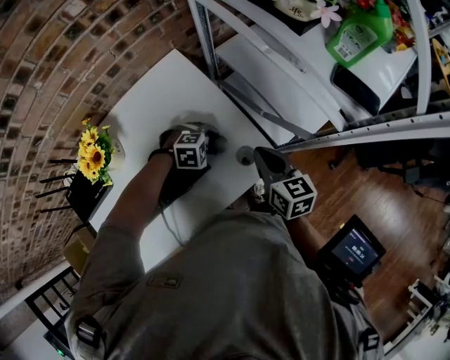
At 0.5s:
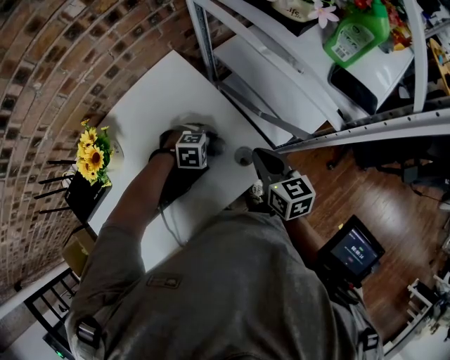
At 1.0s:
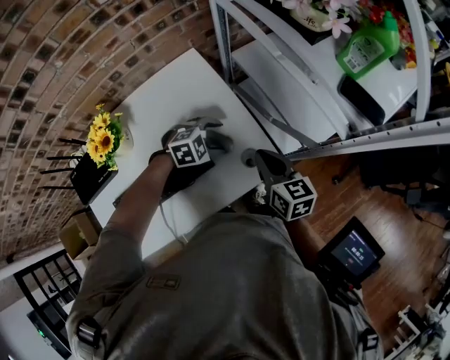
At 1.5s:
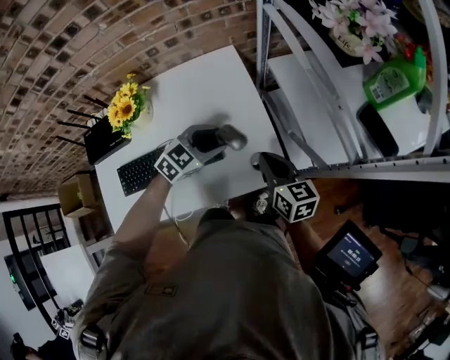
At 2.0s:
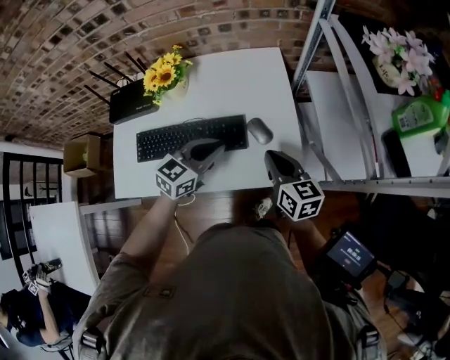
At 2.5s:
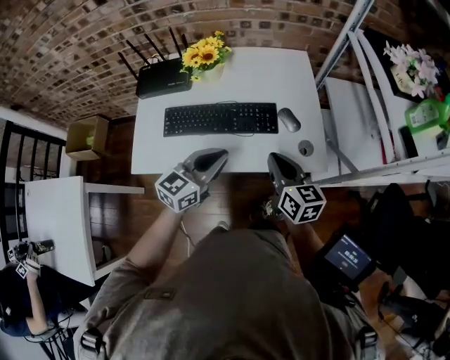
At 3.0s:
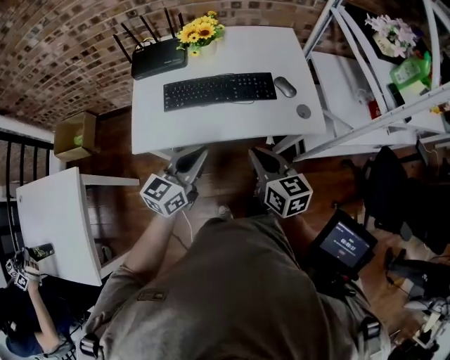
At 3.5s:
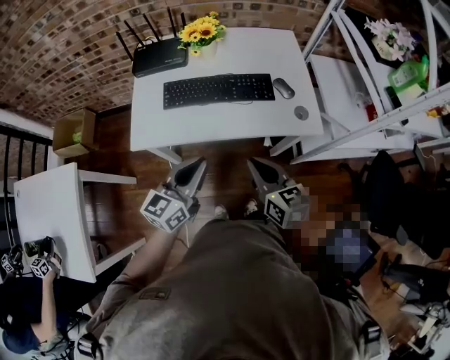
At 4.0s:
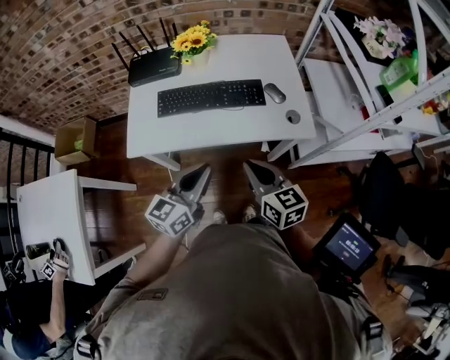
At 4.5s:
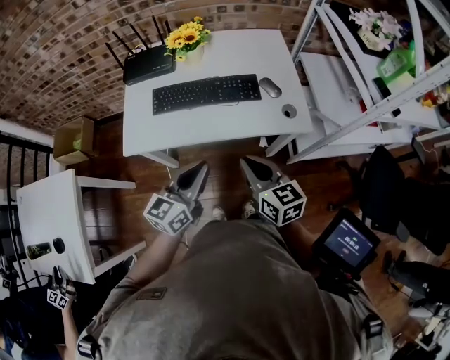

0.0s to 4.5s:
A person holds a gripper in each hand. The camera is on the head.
0.0s to 2.0s: The left gripper travels upward by about 15 cm, tilts its fingers some 50 degrees upward, and closes, while the right gripper changes place by about 10 cm, and rotates approximately 30 degrees.
2.0s to 4.5s: Both grippers move backward and to the left, about 30 cm. The left gripper changes its angle by about 30 degrees.

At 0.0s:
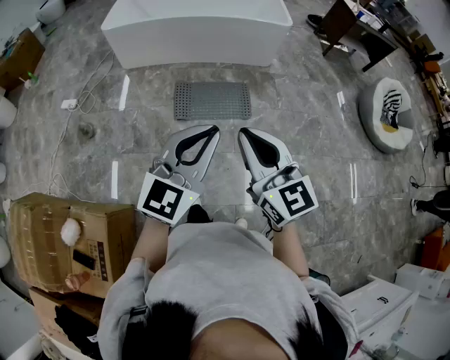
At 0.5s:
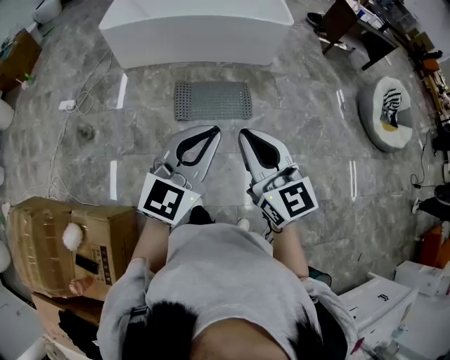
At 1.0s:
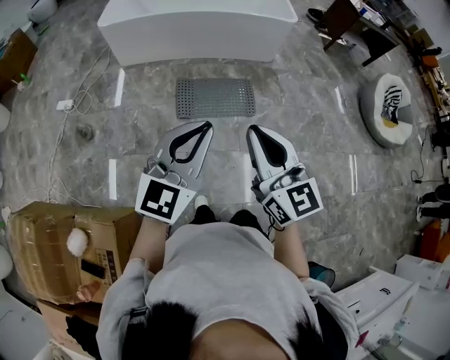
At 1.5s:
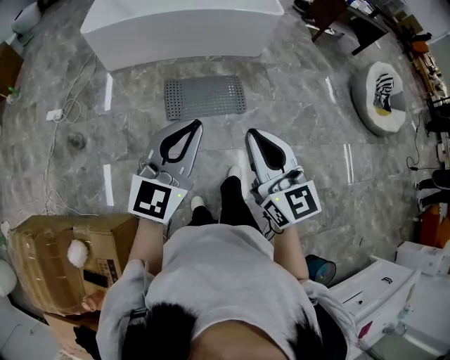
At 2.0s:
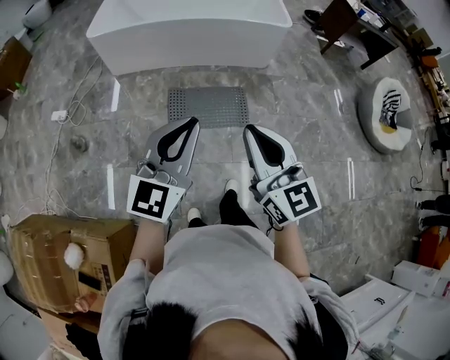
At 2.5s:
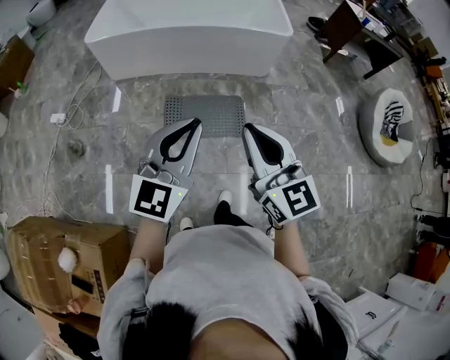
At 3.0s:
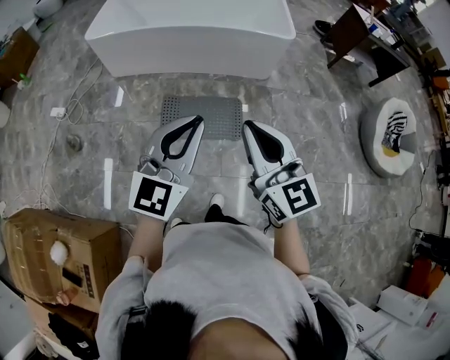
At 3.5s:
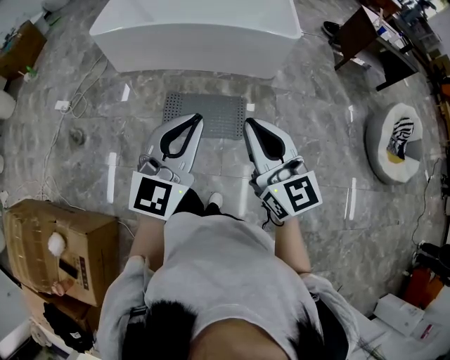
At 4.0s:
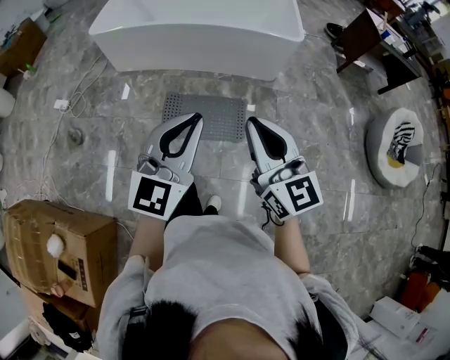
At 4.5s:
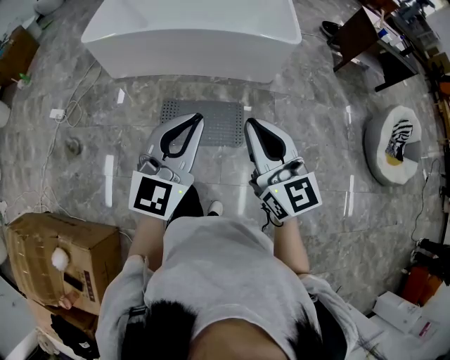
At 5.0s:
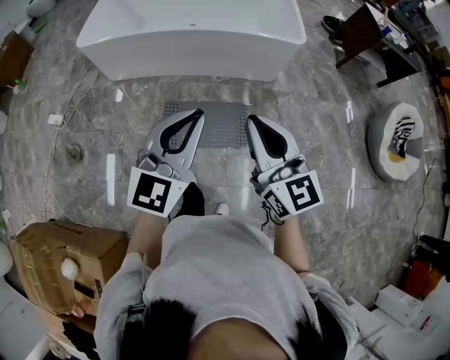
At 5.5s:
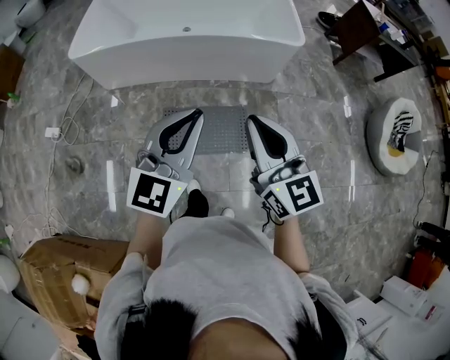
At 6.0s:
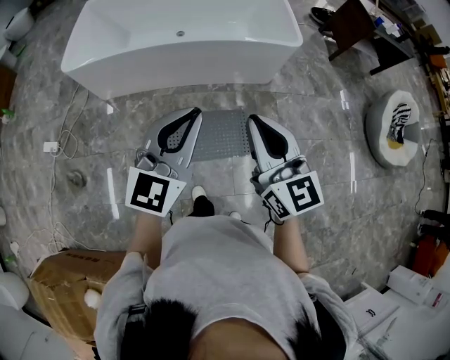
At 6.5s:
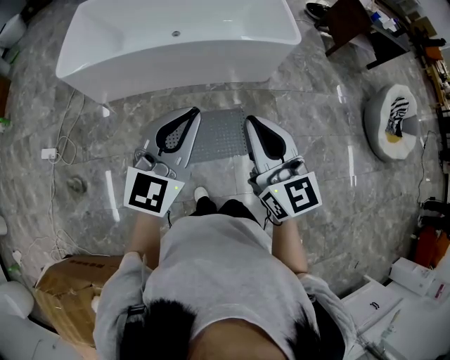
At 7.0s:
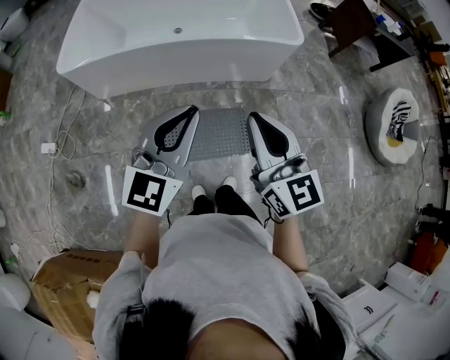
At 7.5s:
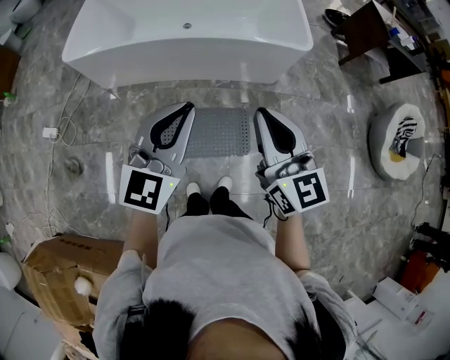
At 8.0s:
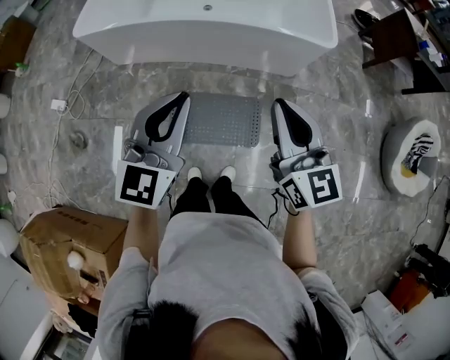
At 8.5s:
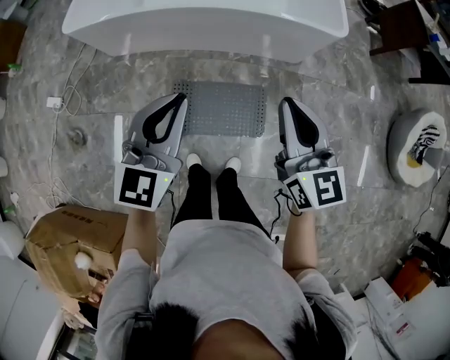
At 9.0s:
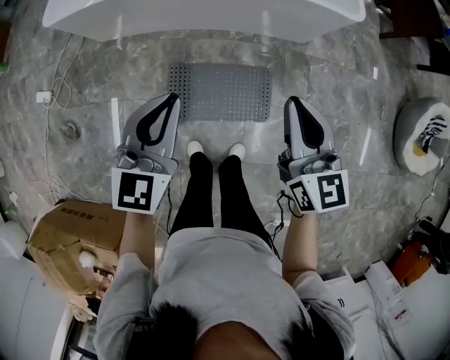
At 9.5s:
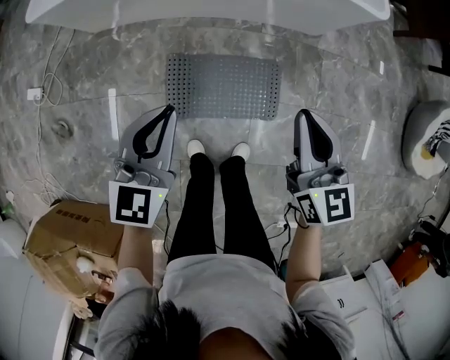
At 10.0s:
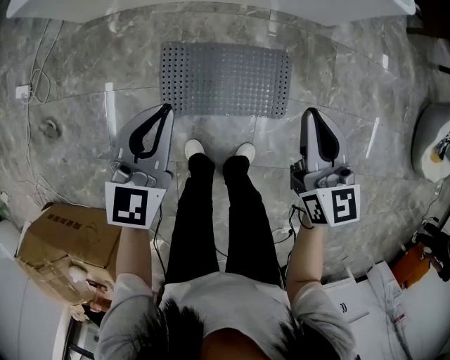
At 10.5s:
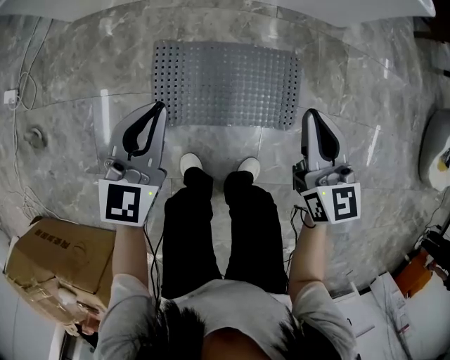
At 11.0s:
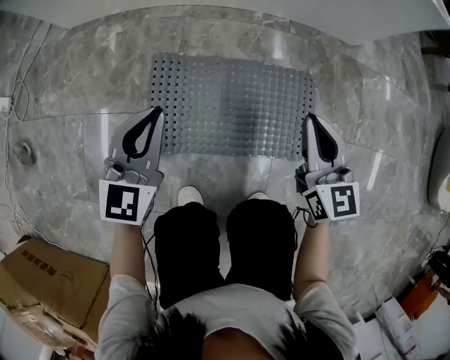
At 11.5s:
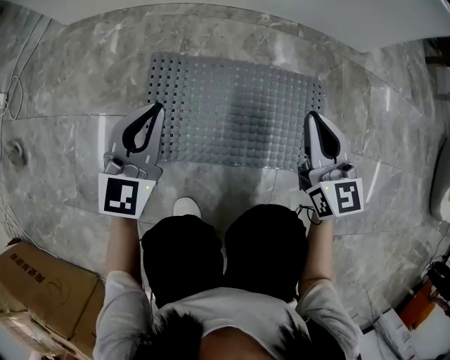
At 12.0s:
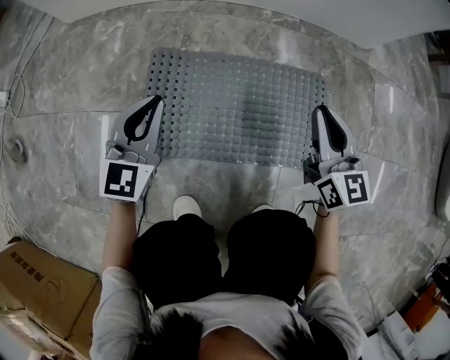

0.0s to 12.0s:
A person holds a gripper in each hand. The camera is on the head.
0.0s to 2.0s: Both grippers travel together forward, some 15 cm.
2.0s to 4.0s: The left gripper moves to the right and forward, about 20 cm. The right gripper goes approximately 25 cm forward and to the right.
4.0s to 6.0s: Both grippers move forward and to the left, approximately 25 cm.
6.0s to 8.0s: The right gripper shifts about 15 cm forward and to the right. The left gripper goes roughly 10 cm forward.
8.0s to 10.0s: Both grippers travel together downward, roughly 40 cm.
10.0s to 12.0s: Both grippers move downward, approximately 40 cm.

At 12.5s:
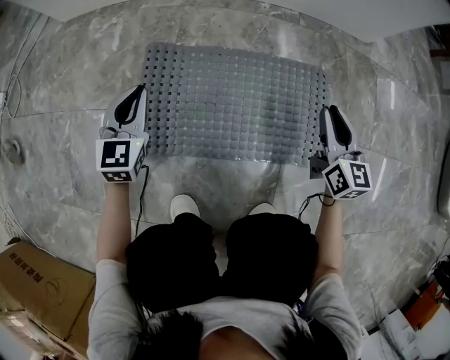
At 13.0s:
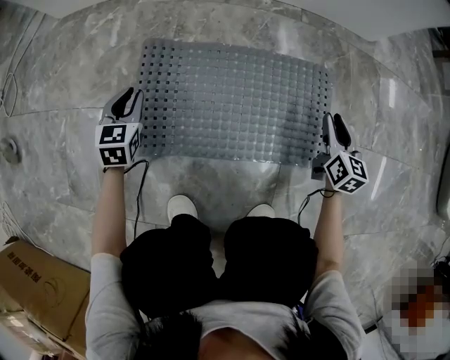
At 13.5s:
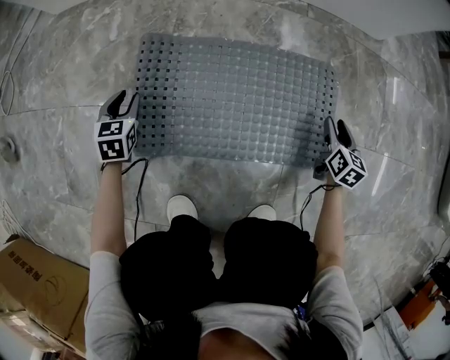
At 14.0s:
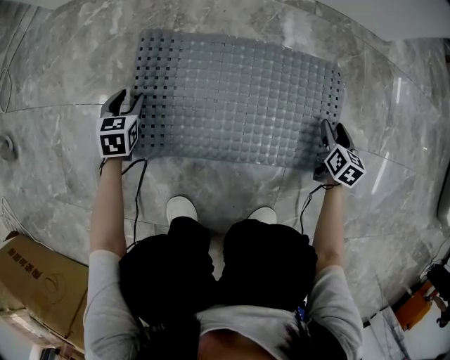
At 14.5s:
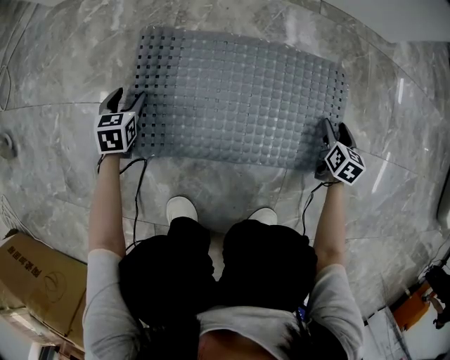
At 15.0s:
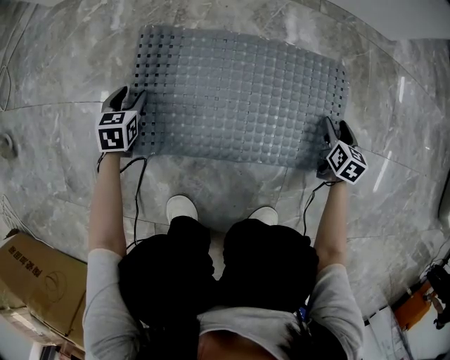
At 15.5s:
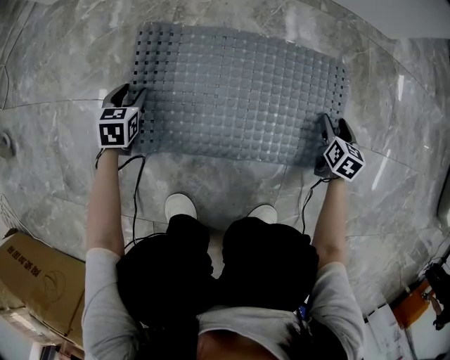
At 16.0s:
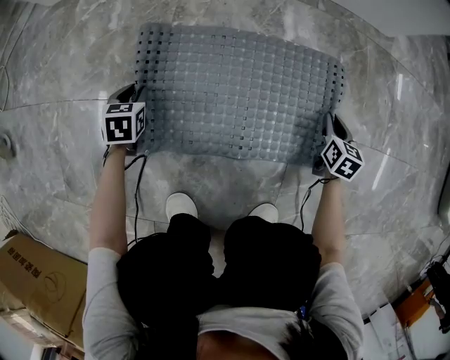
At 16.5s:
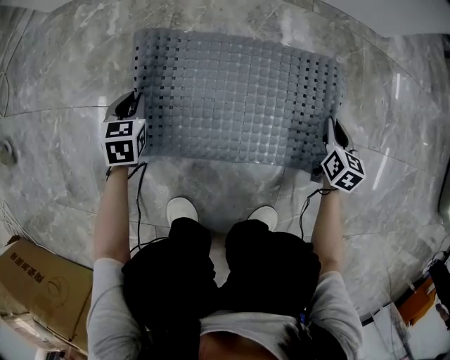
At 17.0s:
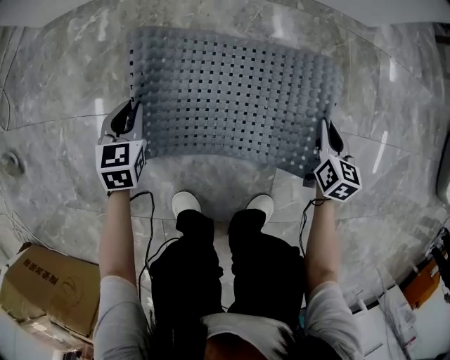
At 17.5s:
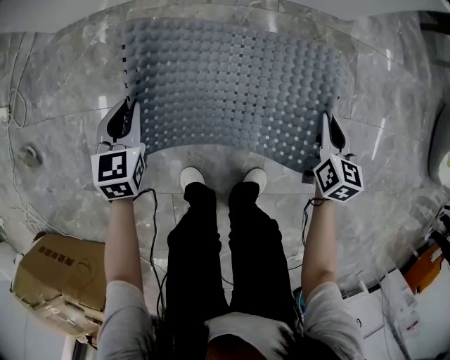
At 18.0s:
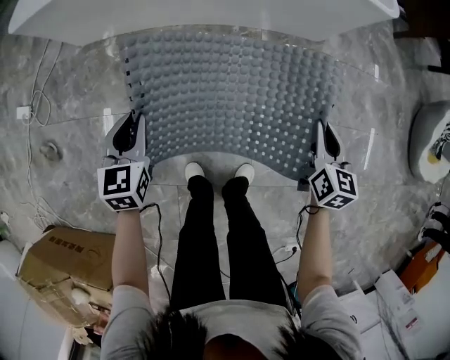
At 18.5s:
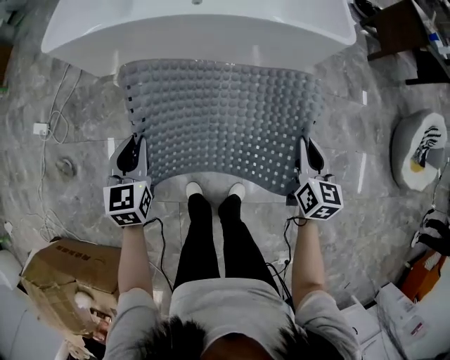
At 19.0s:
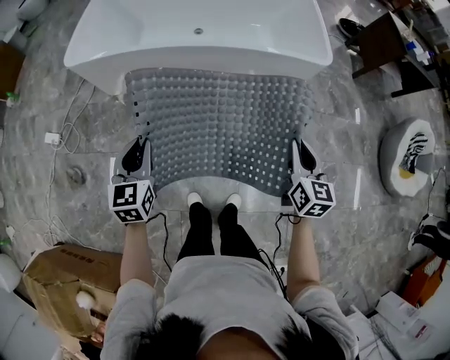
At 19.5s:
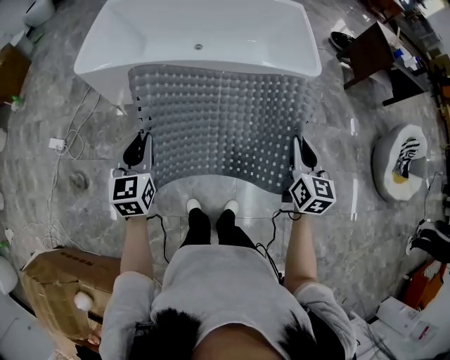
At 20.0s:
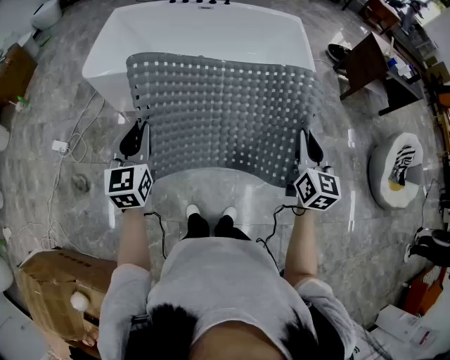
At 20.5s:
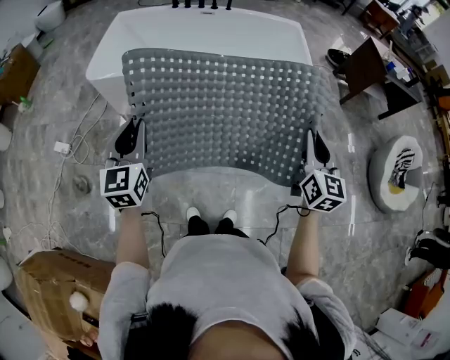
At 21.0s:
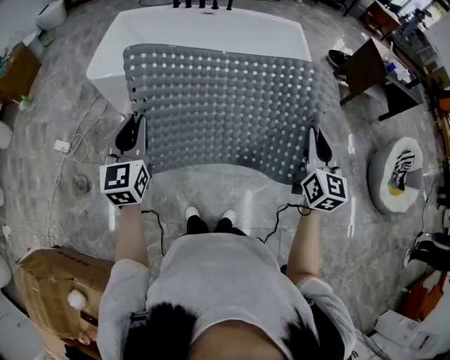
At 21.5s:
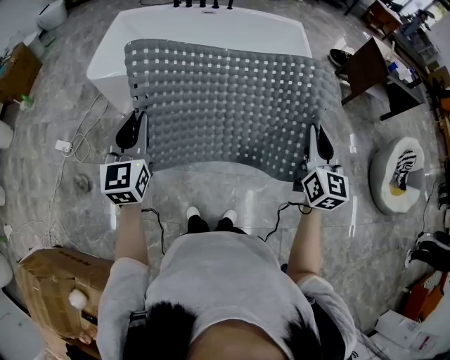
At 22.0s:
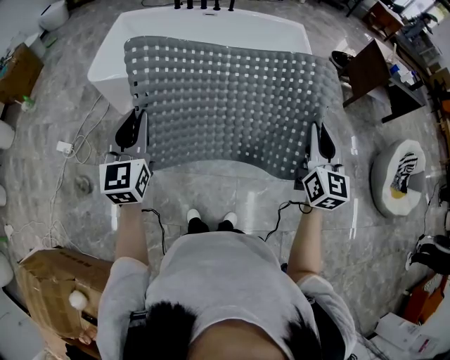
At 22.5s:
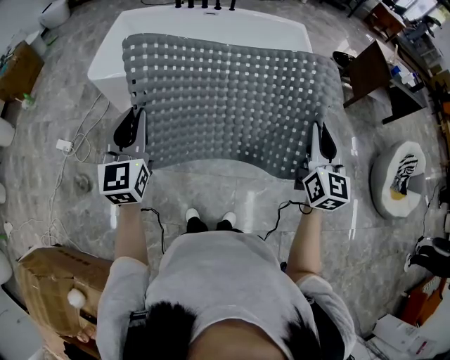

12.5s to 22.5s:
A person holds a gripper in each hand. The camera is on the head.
12.5s to 14.5s: The right gripper moves downward and to the right, roughly 25 cm, tilts its fingers some 30 degrees downward, and opens its fingers. The left gripper travels downward and to the left by roughly 20 cm, changes its angle by some 30 degrees, and opens up.
14.5s to 16.5s: The left gripper moves upward, approximately 5 cm, and closes its fingers; the right gripper moves upward, about 10 cm, and closes.
16.5s to 18.5s: The two grippers go about 70 cm upward. The left gripper turns by roughly 20 degrees.
18.5s to 20.5s: Both grippers move upward, some 35 cm. The right gripper changes its angle by roughly 20 degrees. Meanwhile the left gripper turns by some 20 degrees.
20.5s to 22.5s: The left gripper ends up some 5 cm from where it was.
